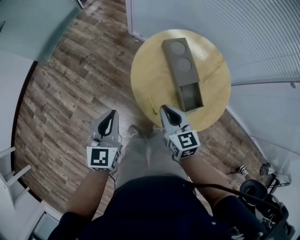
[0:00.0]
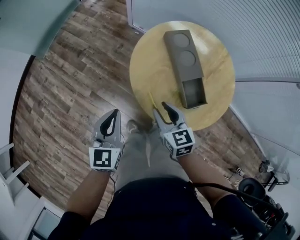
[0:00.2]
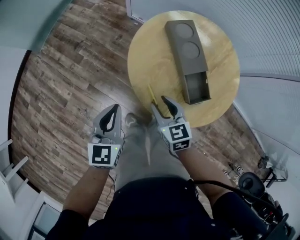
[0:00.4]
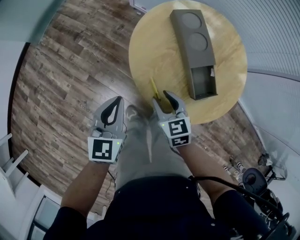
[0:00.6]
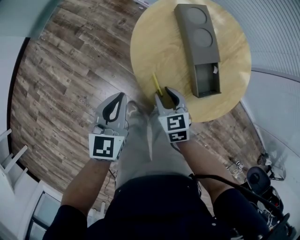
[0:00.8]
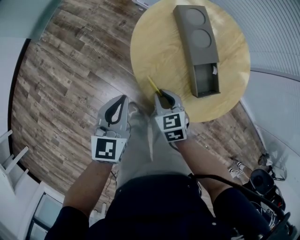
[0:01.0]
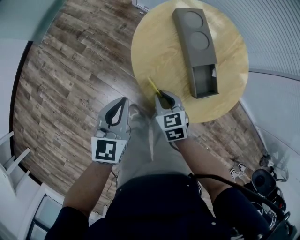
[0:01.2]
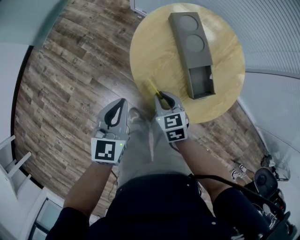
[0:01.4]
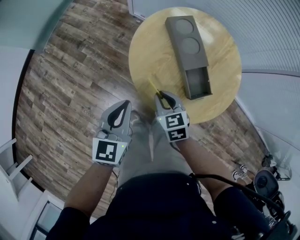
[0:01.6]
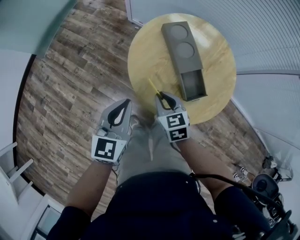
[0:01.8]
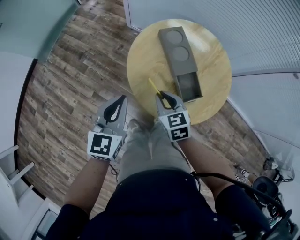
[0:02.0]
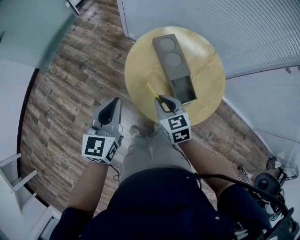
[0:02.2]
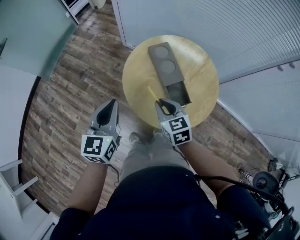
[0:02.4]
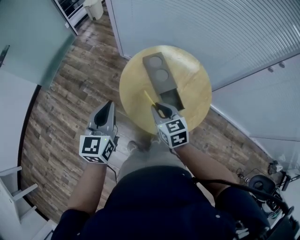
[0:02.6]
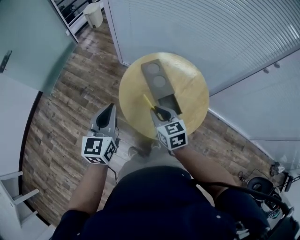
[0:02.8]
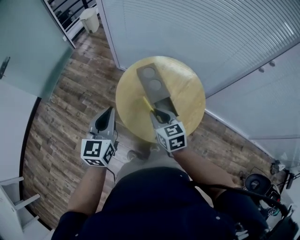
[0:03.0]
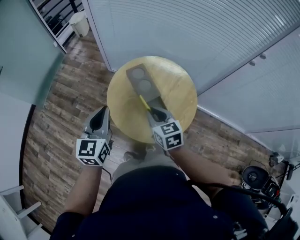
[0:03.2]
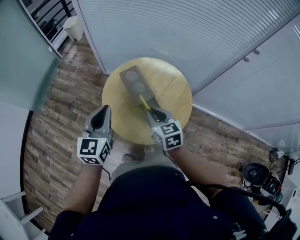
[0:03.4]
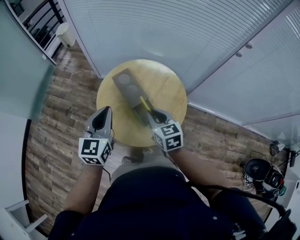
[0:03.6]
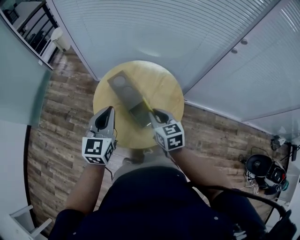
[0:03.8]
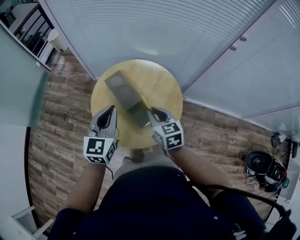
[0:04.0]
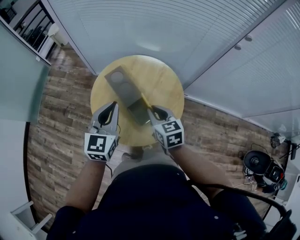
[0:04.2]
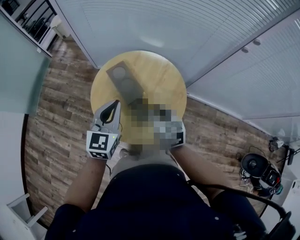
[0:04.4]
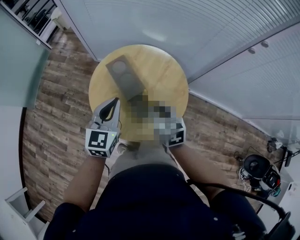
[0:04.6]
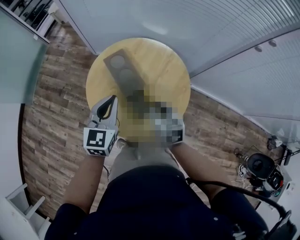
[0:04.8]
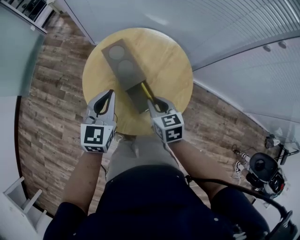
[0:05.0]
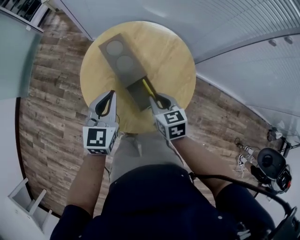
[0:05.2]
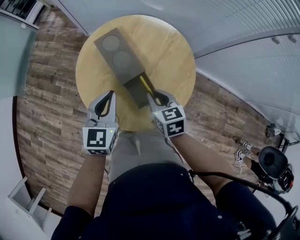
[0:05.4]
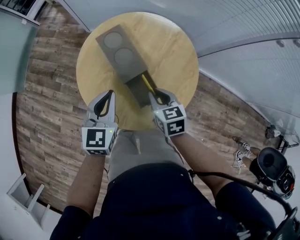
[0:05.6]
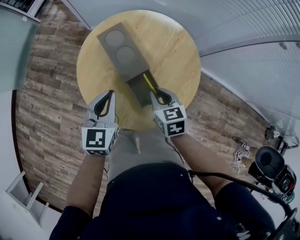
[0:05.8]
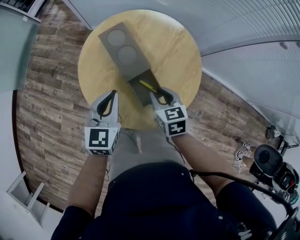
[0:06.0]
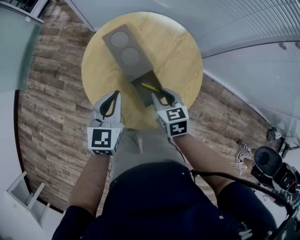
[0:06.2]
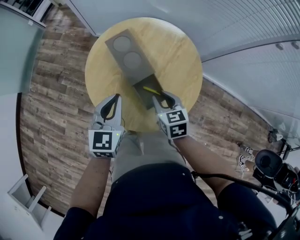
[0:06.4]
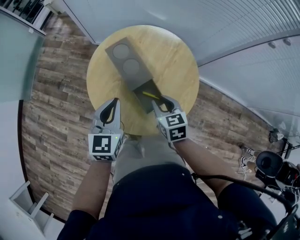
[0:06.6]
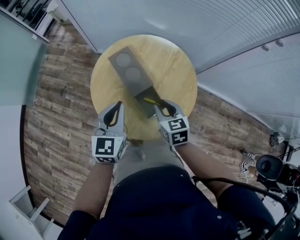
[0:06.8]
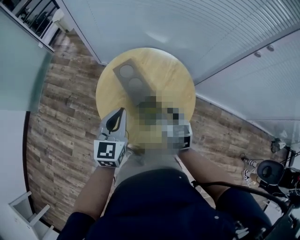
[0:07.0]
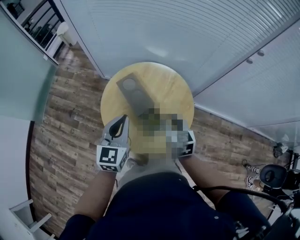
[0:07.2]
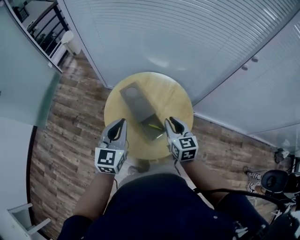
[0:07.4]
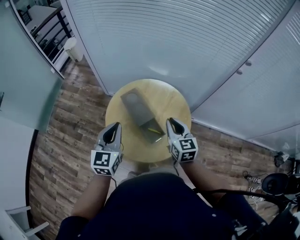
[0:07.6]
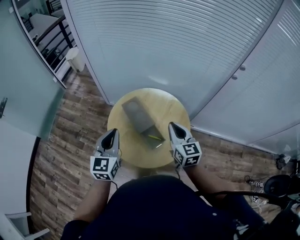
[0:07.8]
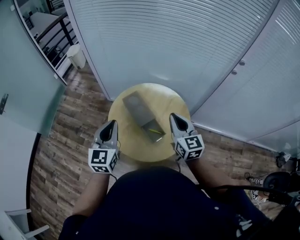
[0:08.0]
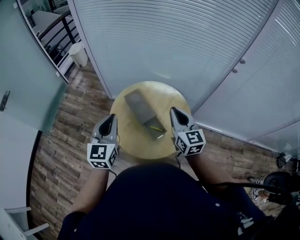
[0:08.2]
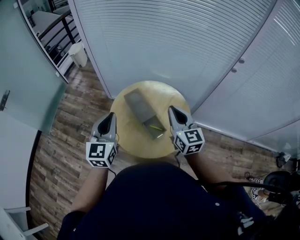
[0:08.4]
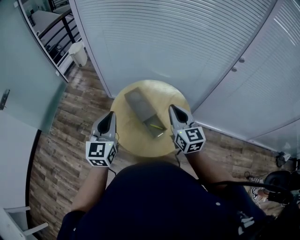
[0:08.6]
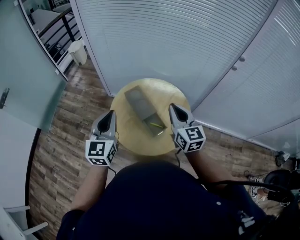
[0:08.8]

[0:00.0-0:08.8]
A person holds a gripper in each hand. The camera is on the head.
0:00.0 to 0:01.4: The right gripper goes approximately 15 cm downward, rotates approximately 20 degrees, and opens and closes again. The left gripper heads downward, covering approximately 10 cm.
0:01.4 to 0:03.0: Both grippers move upward, about 20 cm.
0:03.0 to 0:04.4: The right gripper travels to the right by roughly 15 cm, while the left gripper goes approximately 20 cm to the right and forward.
0:04.4 to 0:05.8: The two grippers go approximately 15 cm downward.
0:05.8 to 0:07.4: The two grippers go about 20 cm upward. The right gripper changes its angle by roughly 20 degrees.
0:07.4 to 0:08.8: The right gripper heads upward, covering approximately 15 cm; the left gripper moves upward and to the left, approximately 10 cm.

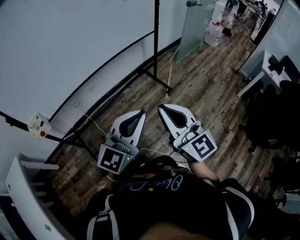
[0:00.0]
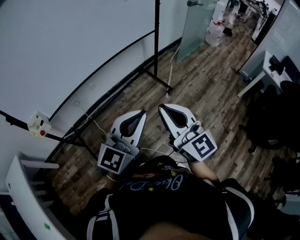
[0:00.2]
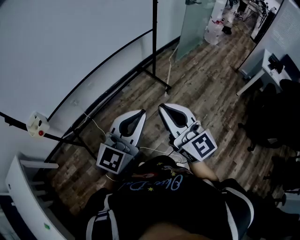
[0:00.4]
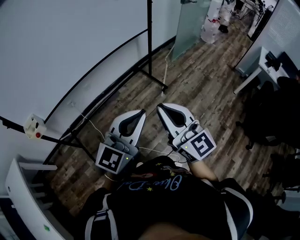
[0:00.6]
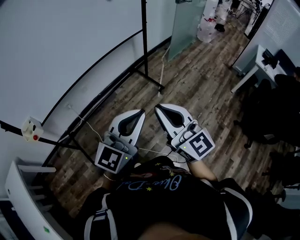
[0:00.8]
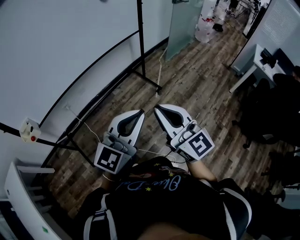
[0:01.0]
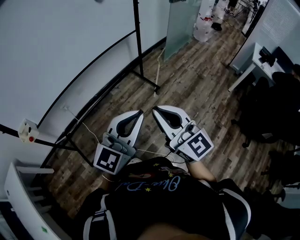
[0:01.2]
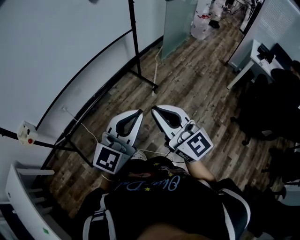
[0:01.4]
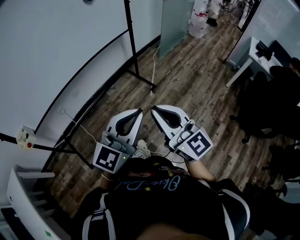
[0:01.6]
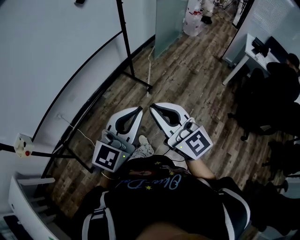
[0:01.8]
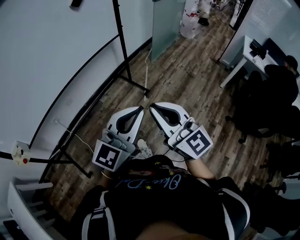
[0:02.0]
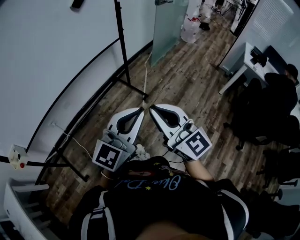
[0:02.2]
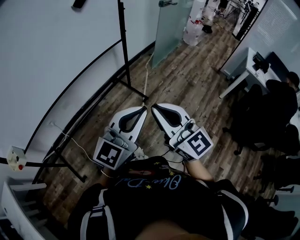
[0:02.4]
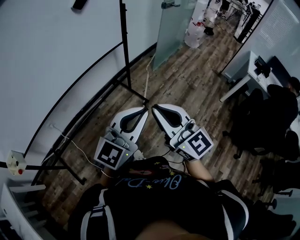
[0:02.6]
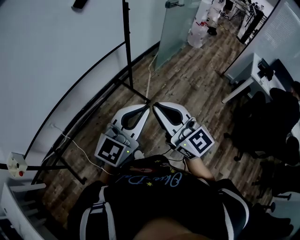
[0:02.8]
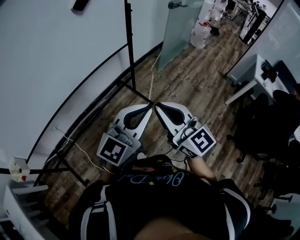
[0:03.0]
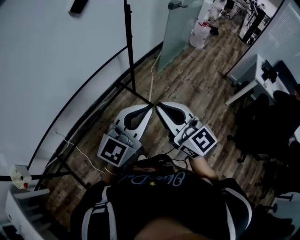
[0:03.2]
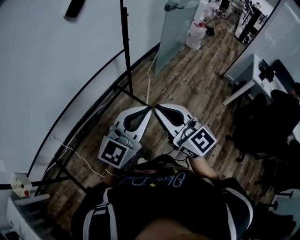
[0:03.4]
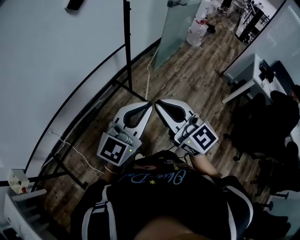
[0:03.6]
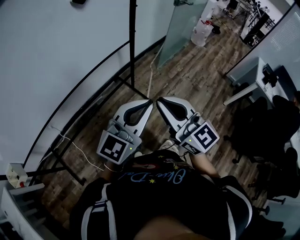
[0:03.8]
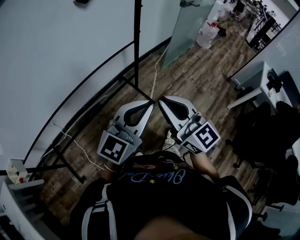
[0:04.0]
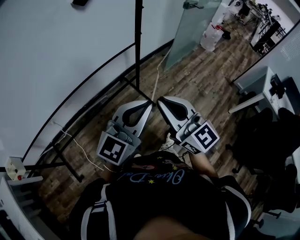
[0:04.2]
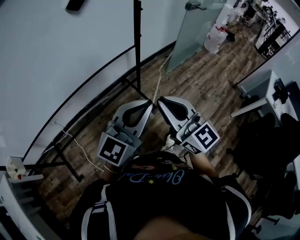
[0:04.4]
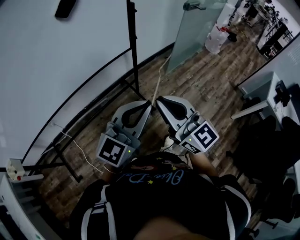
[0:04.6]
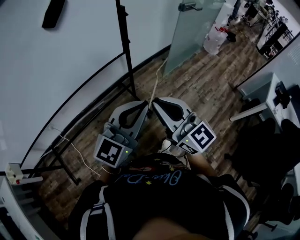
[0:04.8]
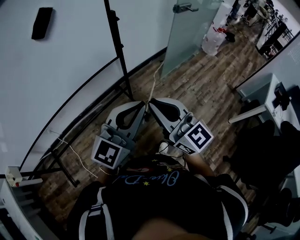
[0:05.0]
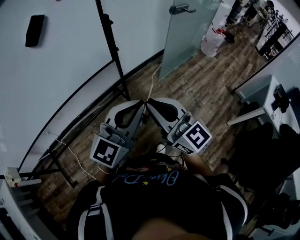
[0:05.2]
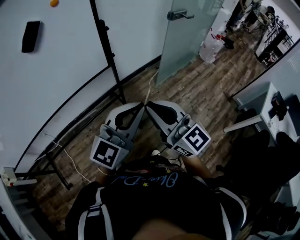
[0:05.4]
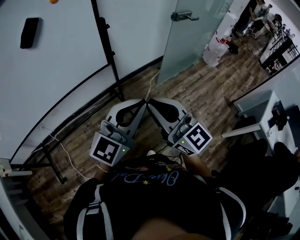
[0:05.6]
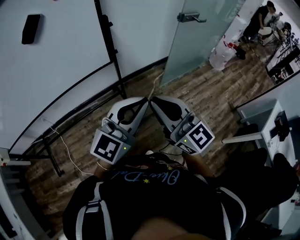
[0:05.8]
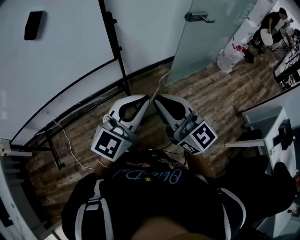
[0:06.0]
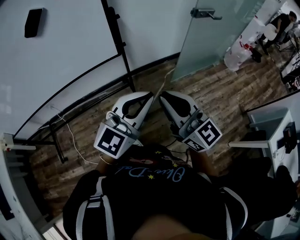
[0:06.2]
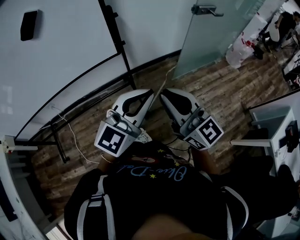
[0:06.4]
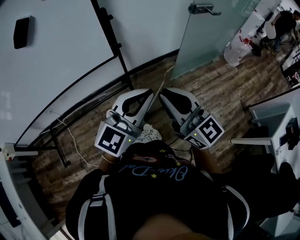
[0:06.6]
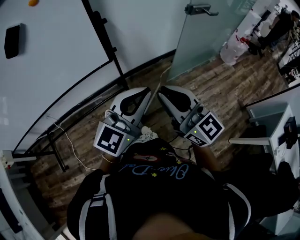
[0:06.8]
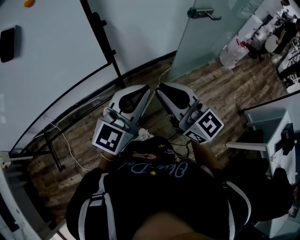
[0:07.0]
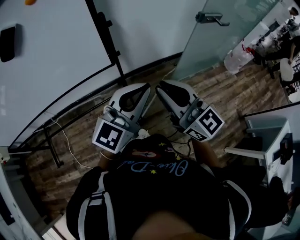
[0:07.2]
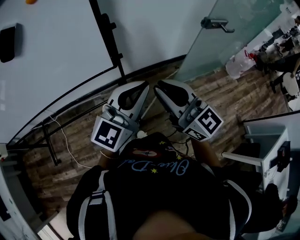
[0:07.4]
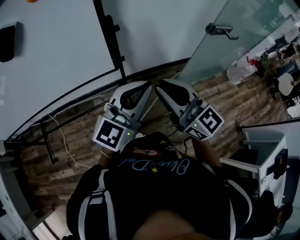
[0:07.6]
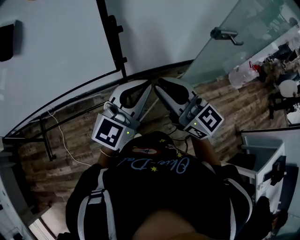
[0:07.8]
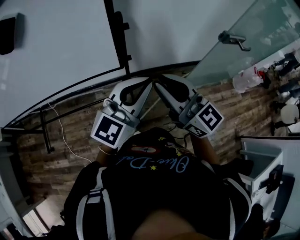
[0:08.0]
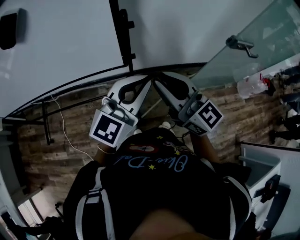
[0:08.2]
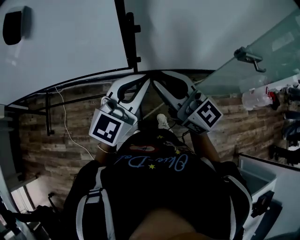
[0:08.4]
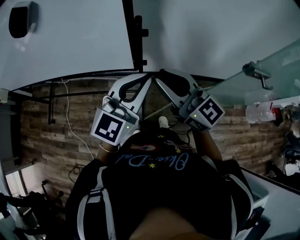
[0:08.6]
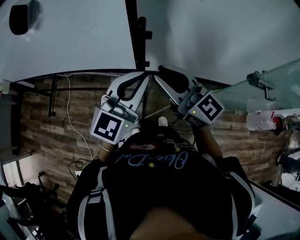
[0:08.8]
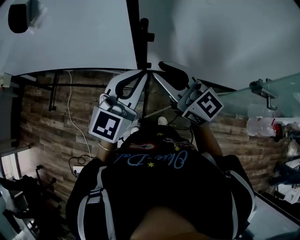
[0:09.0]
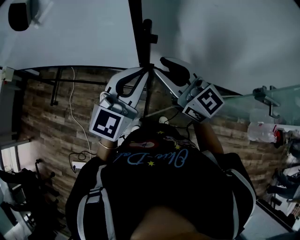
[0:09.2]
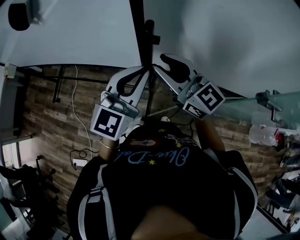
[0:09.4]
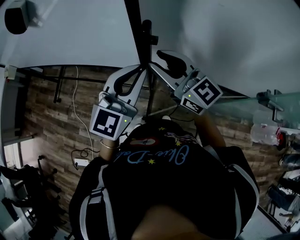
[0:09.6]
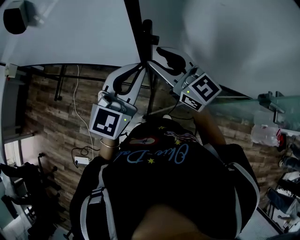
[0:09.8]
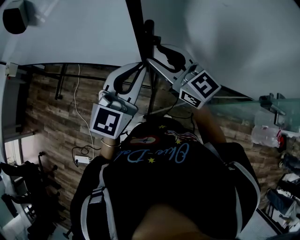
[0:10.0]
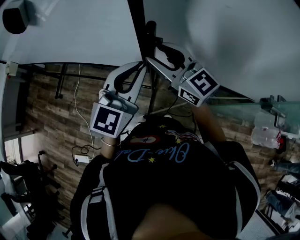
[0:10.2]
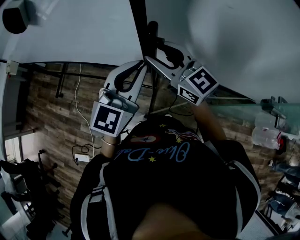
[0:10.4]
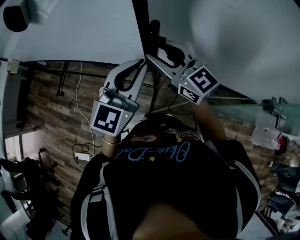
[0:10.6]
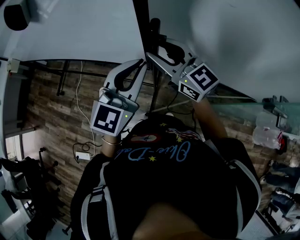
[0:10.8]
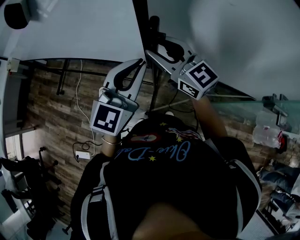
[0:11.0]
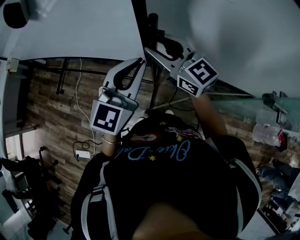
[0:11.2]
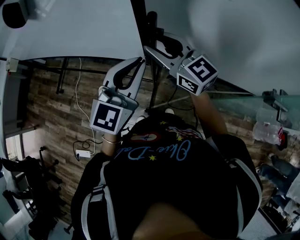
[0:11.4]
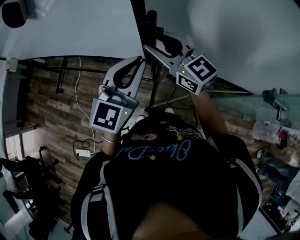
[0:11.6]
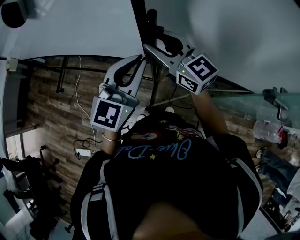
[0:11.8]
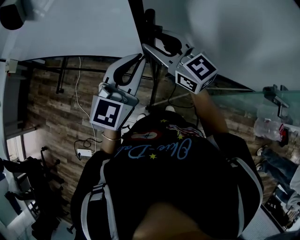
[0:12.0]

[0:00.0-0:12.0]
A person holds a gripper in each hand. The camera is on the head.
0:00.0 to 0:01.6: Both grippers move to the right, roughly 10 cm.
0:01.6 to 0:03.0: Both grippers travel together forward, approximately 20 cm.
0:03.0 to 0:04.4: The two grippers go roughly 10 cm forward.
0:04.4 to 0:06.0: The grippers both shift to the right and forward by approximately 25 cm.
0:06.0 to 0:07.6: The two grippers go some 20 cm forward.
0:07.6 to 0:09.0: The right gripper moves approximately 15 cm, and rotates roughly 30 degrees. The left gripper moves some 15 cm, and swivels roughly 30 degrees.
0:09.0 to 0:10.4: The left gripper moves roughly 5 cm. The right gripper shifts roughly 10 cm forward.
0:10.4 to 0:12.0: The grippers stay close to where they were, moving slightly.

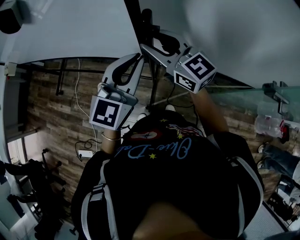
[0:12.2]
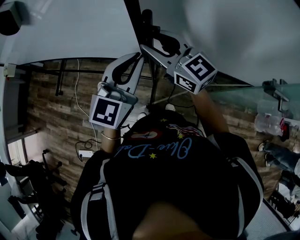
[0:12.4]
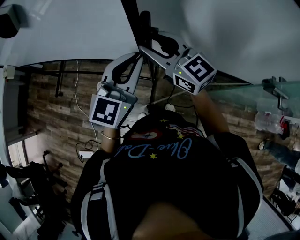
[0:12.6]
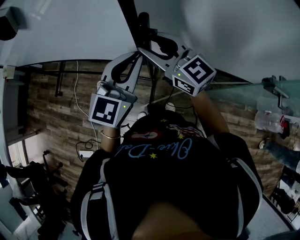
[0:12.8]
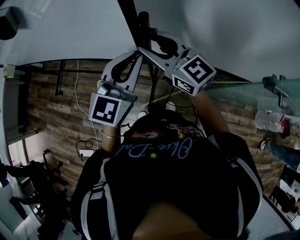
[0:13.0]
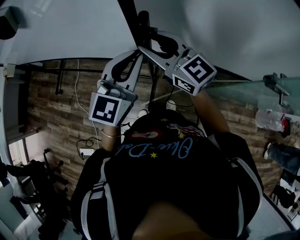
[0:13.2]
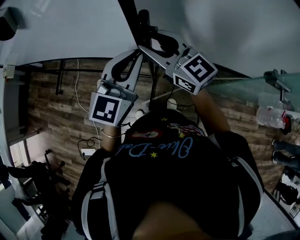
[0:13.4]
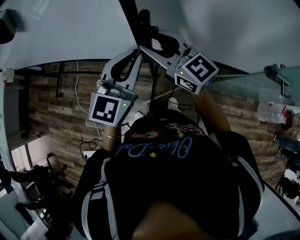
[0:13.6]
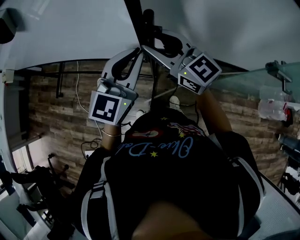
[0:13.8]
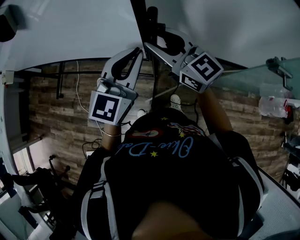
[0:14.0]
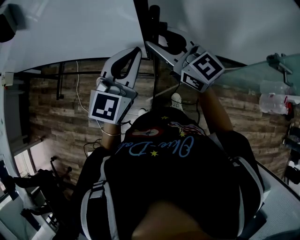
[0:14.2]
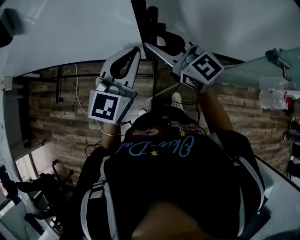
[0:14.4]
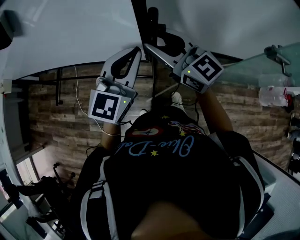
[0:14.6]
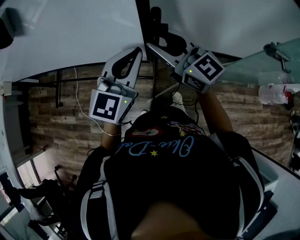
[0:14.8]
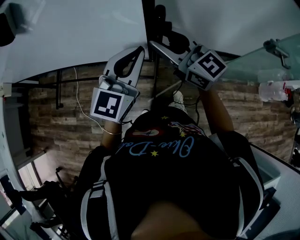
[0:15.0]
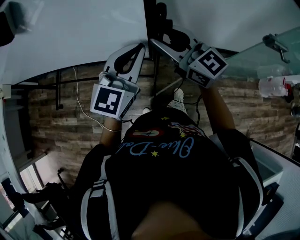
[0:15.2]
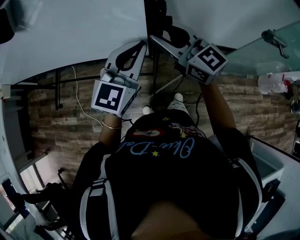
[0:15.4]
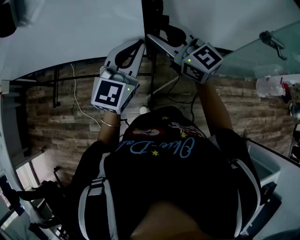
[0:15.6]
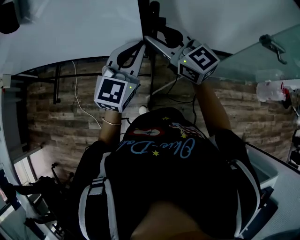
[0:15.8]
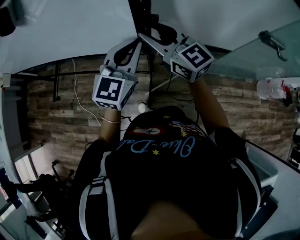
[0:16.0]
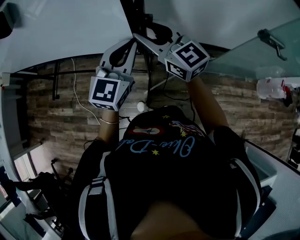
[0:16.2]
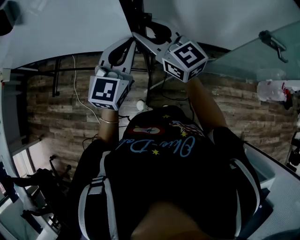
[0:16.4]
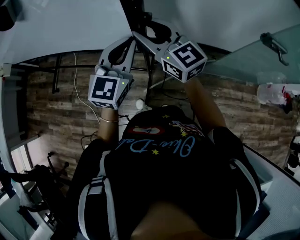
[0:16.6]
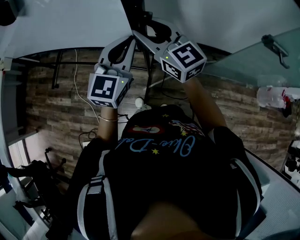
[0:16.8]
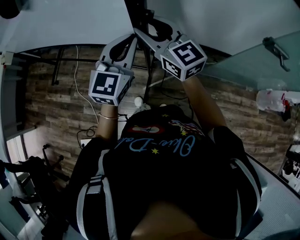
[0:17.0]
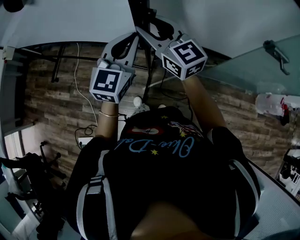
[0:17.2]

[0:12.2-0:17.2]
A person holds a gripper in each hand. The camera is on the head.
0:12.2 to 0:13.8: The right gripper shifts by some 5 cm.
0:13.8 to 0:15.6: The left gripper changes place by some 5 cm.
0:15.6 to 0:17.2: The grippers stay close to where they were, moving slightly.
